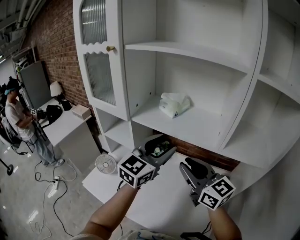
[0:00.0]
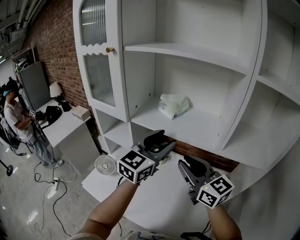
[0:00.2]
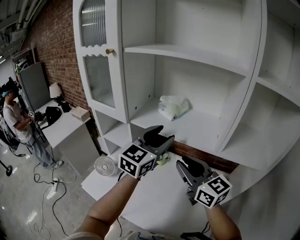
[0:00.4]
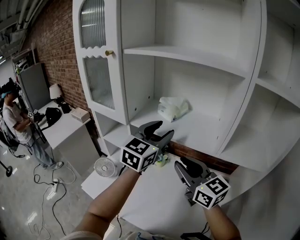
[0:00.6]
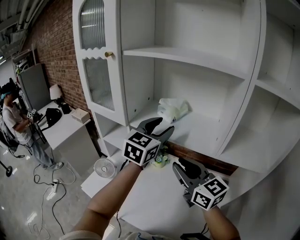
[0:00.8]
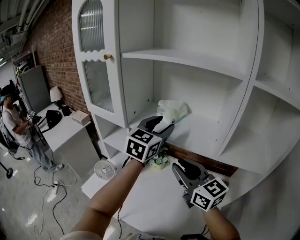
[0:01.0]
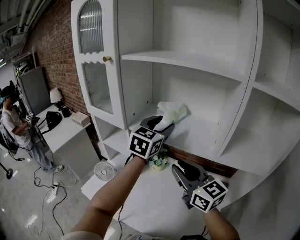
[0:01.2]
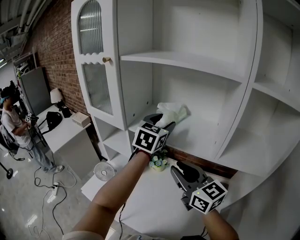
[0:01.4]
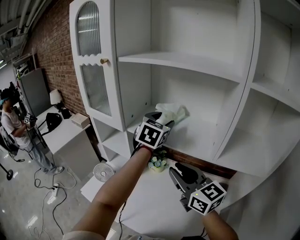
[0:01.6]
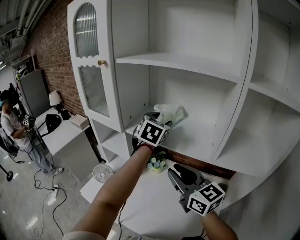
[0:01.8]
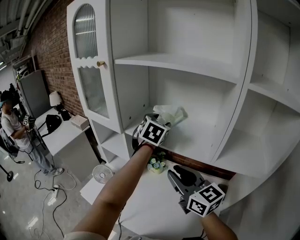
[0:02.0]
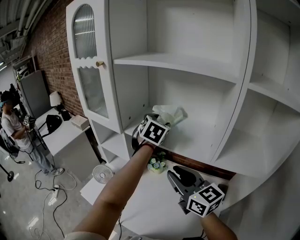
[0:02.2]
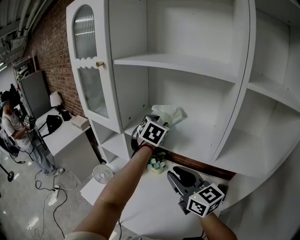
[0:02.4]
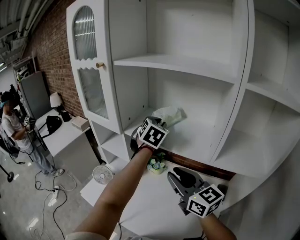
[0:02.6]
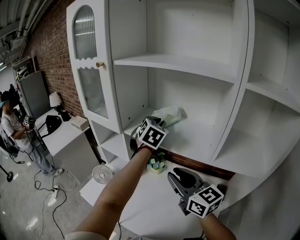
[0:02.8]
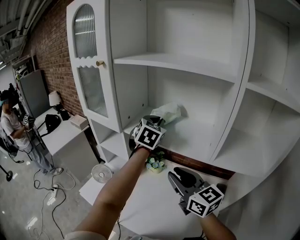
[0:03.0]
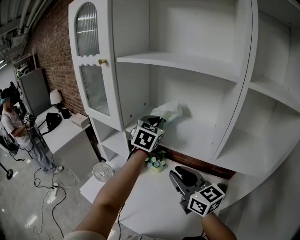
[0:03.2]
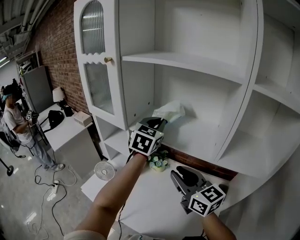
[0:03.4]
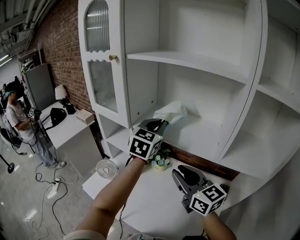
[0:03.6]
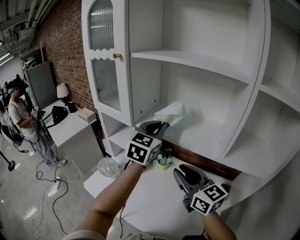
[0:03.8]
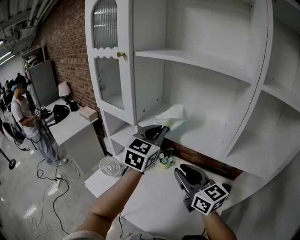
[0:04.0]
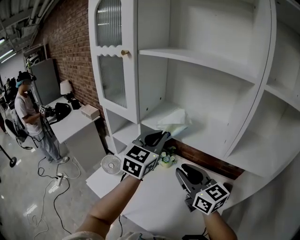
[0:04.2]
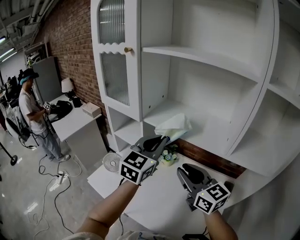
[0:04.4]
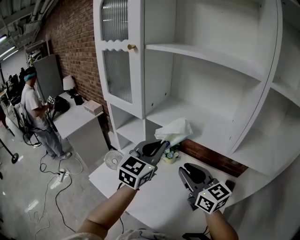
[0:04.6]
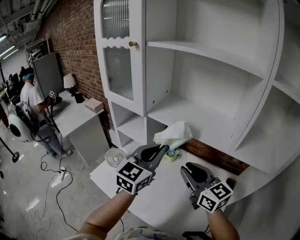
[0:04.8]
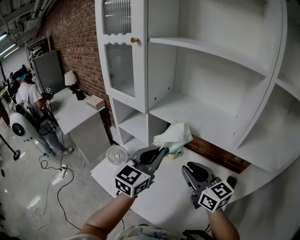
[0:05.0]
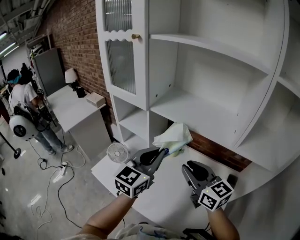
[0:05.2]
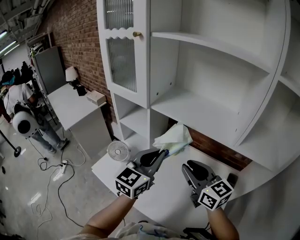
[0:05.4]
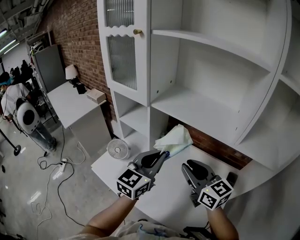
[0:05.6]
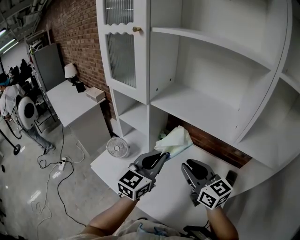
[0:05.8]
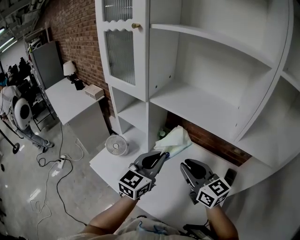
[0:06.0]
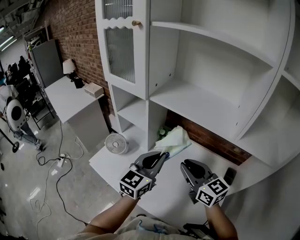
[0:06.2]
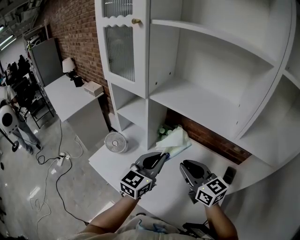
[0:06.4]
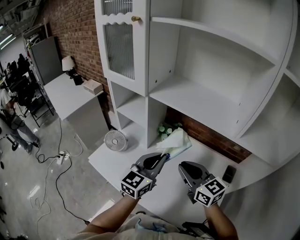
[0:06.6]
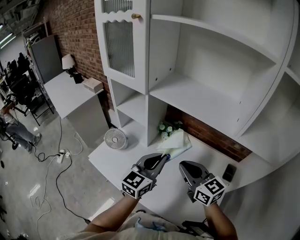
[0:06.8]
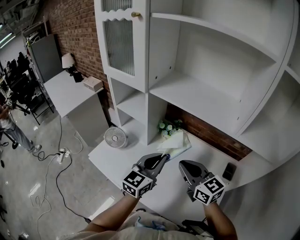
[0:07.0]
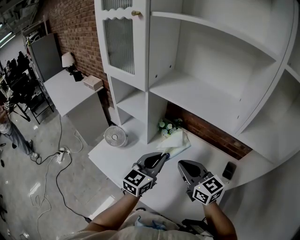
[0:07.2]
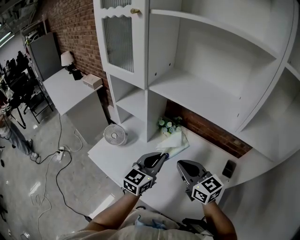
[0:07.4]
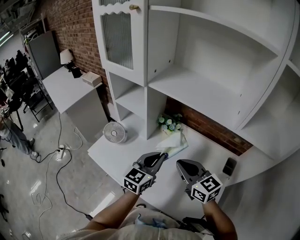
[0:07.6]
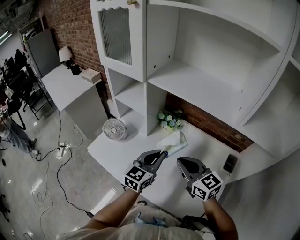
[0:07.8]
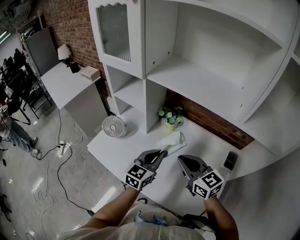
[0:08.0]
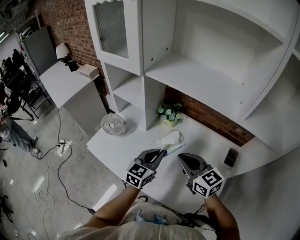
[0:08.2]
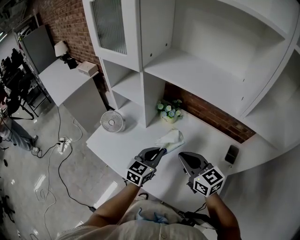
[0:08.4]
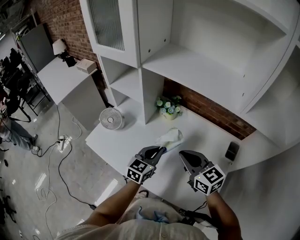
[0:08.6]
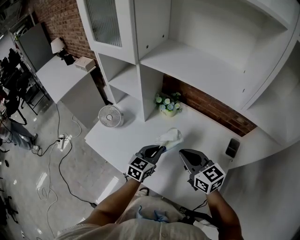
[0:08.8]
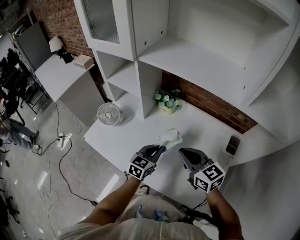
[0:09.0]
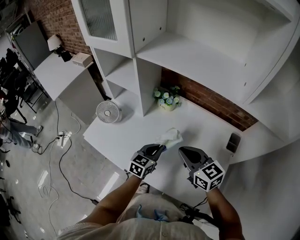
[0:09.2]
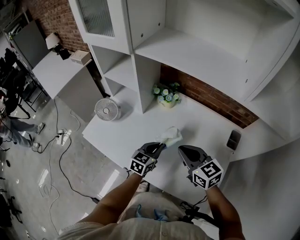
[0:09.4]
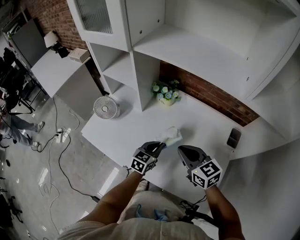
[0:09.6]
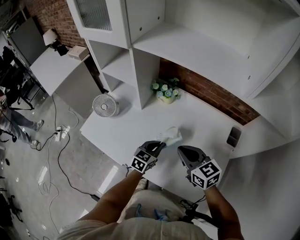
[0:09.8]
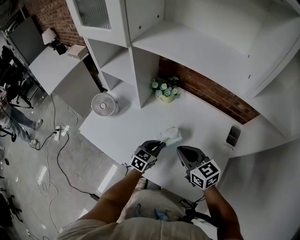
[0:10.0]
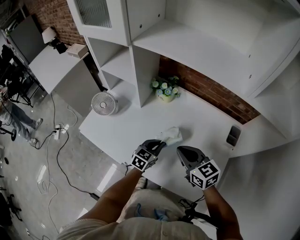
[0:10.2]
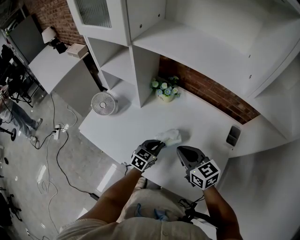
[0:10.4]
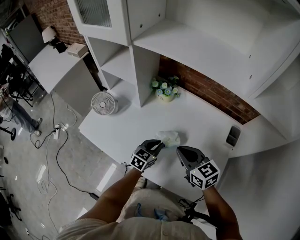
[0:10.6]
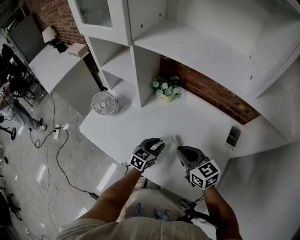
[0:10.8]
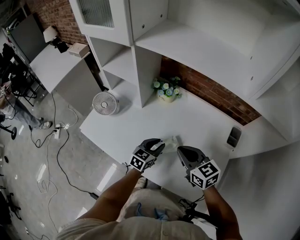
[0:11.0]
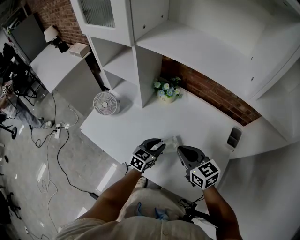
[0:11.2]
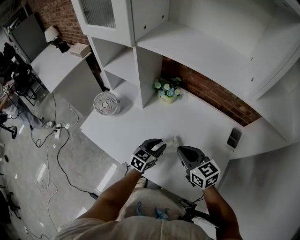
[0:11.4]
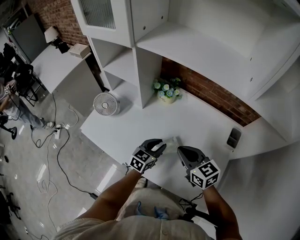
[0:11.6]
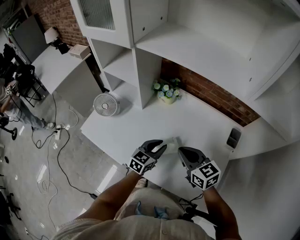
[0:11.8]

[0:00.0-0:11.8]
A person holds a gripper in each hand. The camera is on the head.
0:00.0 to 0:01.4: The left gripper shifts about 15 cm forward, and rotates about 20 degrees.
0:01.4 to 0:03.0: The left gripper closes its fingers.
0:03.0 to 0:04.4: The left gripper moves backward and to the left, about 15 cm, and rotates roughly 20 degrees.
0:04.4 to 0:06.0: The left gripper is displaced downward and backward by about 15 cm, while the right gripper moves downward, roughly 5 cm.
0:06.0 to 0:07.4: The two grippers go about 5 cm downward.
0:07.4 to 0:08.8: The right gripper moves downward, about 5 cm. The left gripper shifts approximately 15 cm downward.
0:08.8 to 0:10.4: The right gripper is displaced downward by roughly 5 cm. The left gripper heads downward, covering approximately 10 cm.
0:10.4 to 0:11.8: The left gripper opens up.

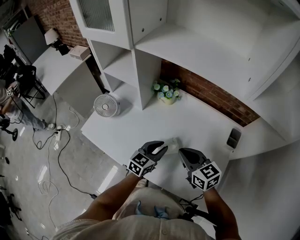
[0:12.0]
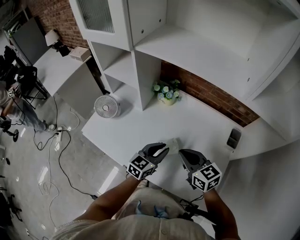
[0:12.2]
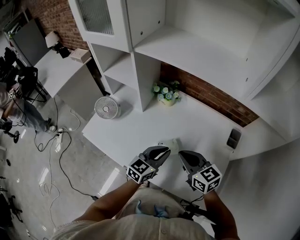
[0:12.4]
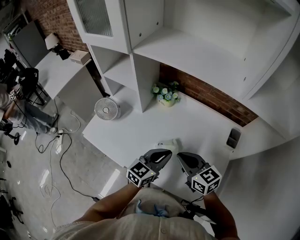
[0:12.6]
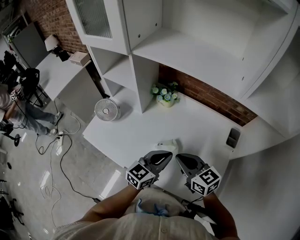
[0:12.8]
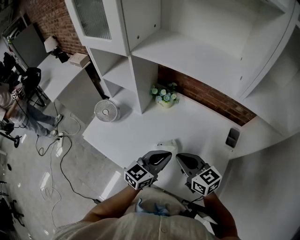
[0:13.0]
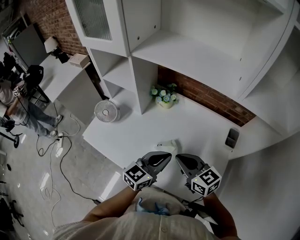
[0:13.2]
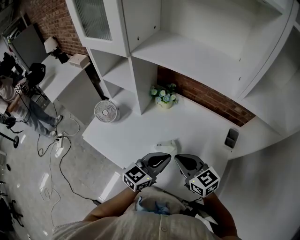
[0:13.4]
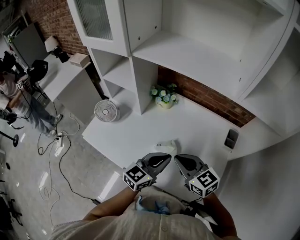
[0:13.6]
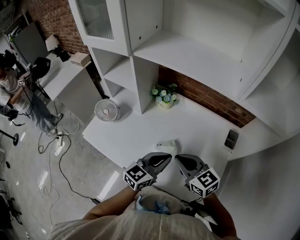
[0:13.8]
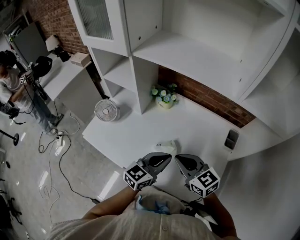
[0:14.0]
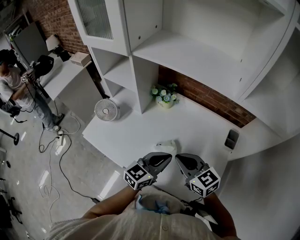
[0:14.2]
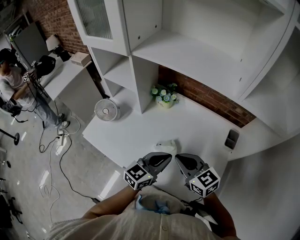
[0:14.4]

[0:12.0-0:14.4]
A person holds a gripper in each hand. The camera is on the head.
0:12.0 to 0:13.2: The left gripper shifts approximately 10 cm upward and backward, and closes up.
0:13.2 to 0:14.4: The grippers move only a little.

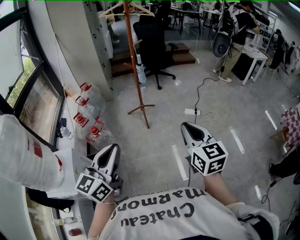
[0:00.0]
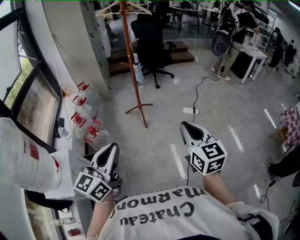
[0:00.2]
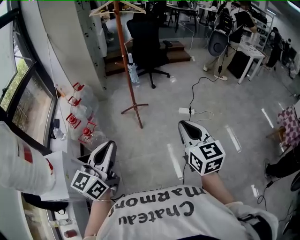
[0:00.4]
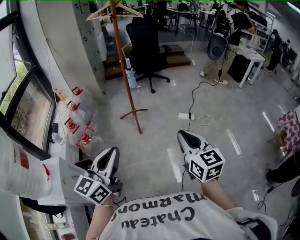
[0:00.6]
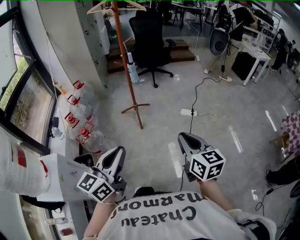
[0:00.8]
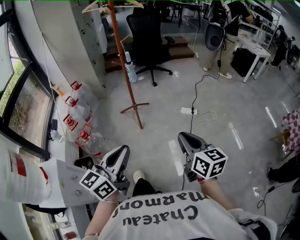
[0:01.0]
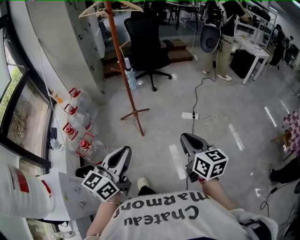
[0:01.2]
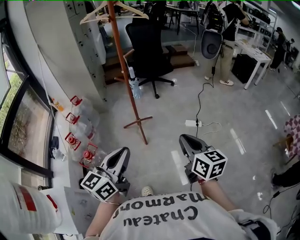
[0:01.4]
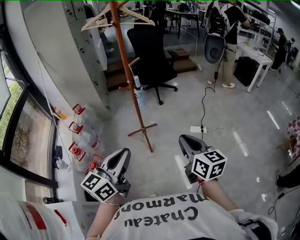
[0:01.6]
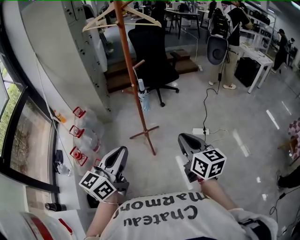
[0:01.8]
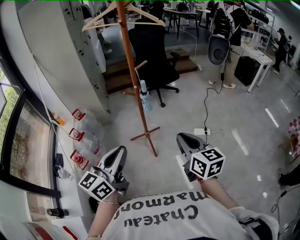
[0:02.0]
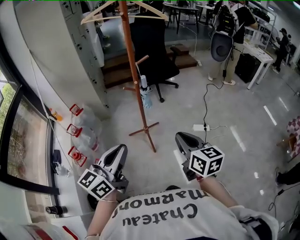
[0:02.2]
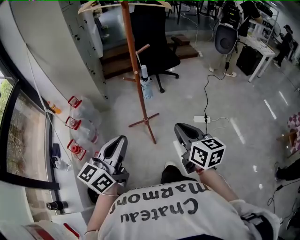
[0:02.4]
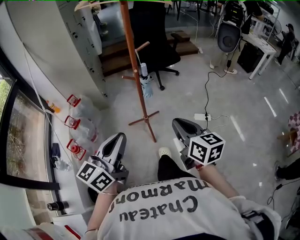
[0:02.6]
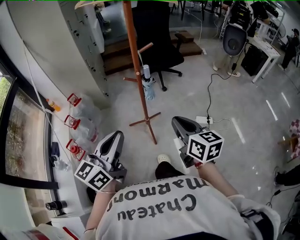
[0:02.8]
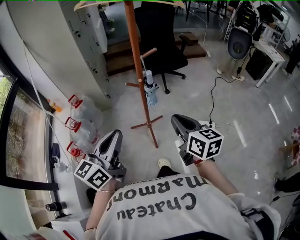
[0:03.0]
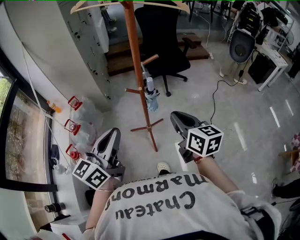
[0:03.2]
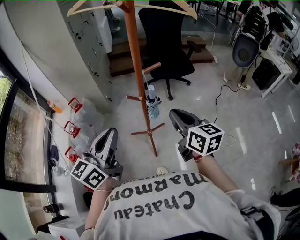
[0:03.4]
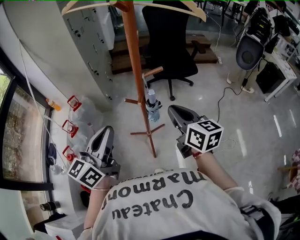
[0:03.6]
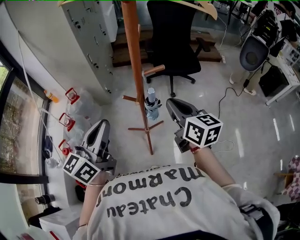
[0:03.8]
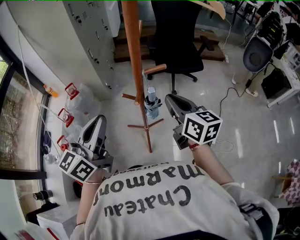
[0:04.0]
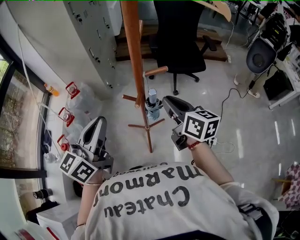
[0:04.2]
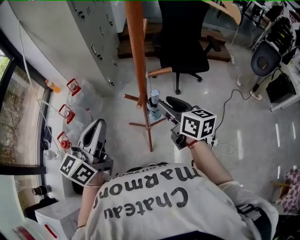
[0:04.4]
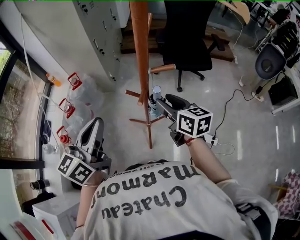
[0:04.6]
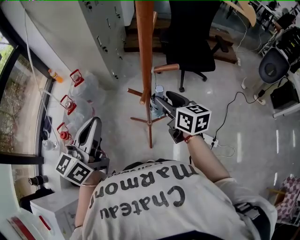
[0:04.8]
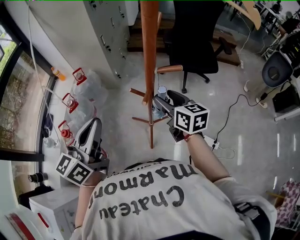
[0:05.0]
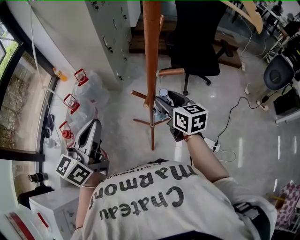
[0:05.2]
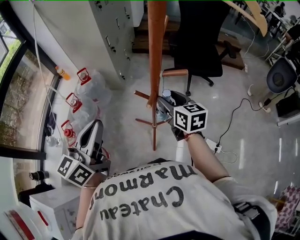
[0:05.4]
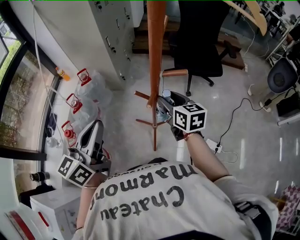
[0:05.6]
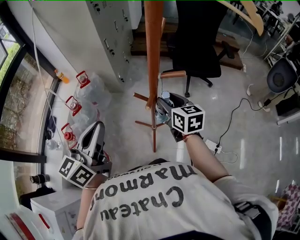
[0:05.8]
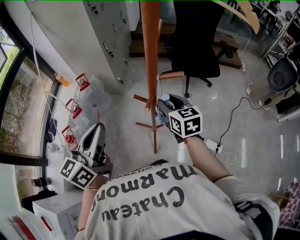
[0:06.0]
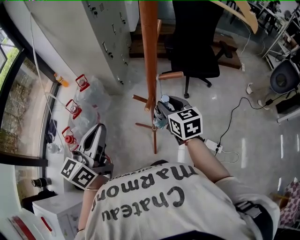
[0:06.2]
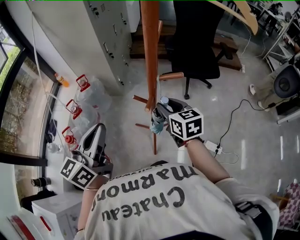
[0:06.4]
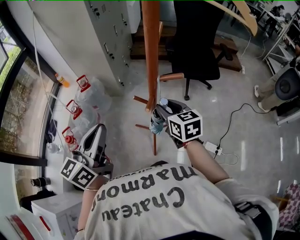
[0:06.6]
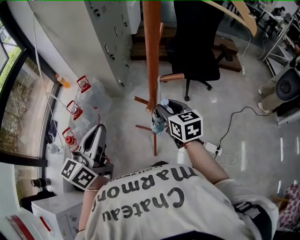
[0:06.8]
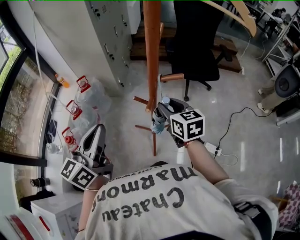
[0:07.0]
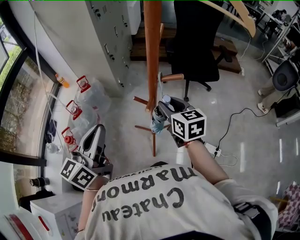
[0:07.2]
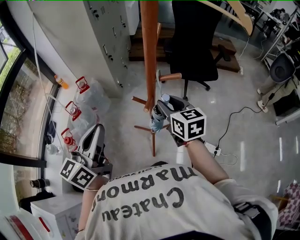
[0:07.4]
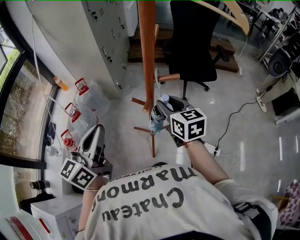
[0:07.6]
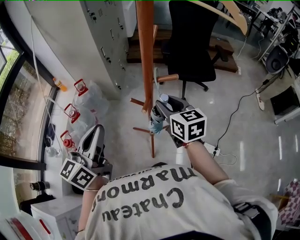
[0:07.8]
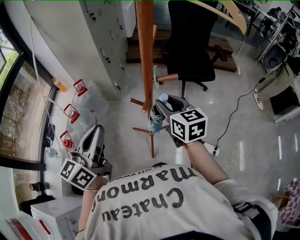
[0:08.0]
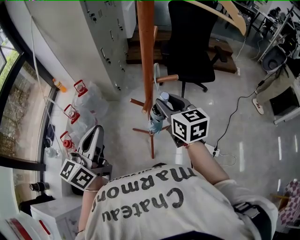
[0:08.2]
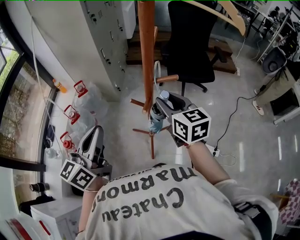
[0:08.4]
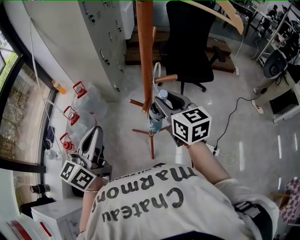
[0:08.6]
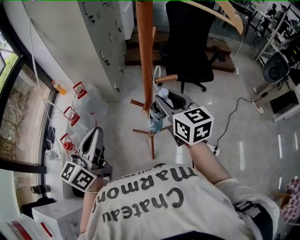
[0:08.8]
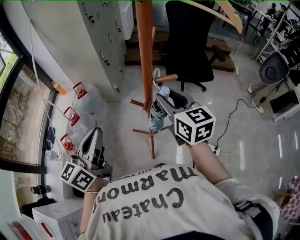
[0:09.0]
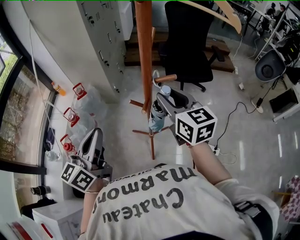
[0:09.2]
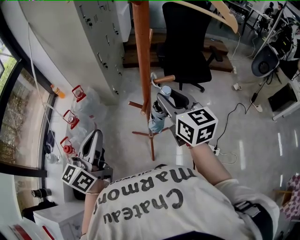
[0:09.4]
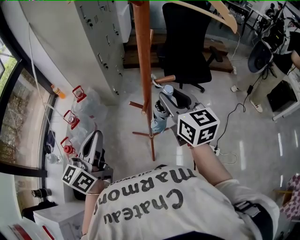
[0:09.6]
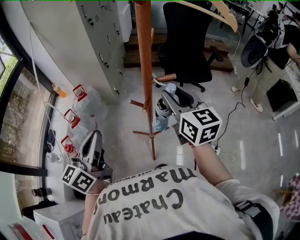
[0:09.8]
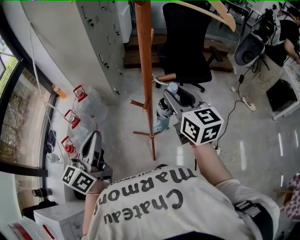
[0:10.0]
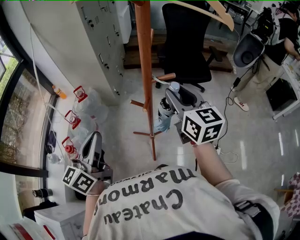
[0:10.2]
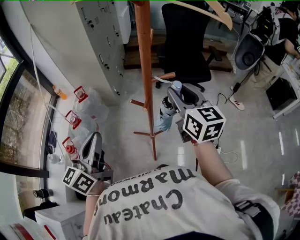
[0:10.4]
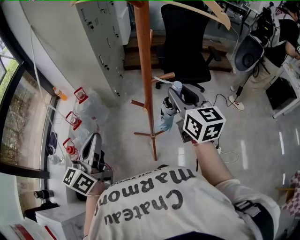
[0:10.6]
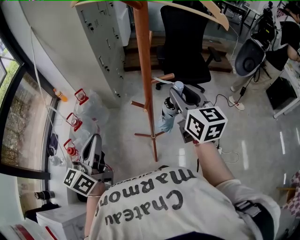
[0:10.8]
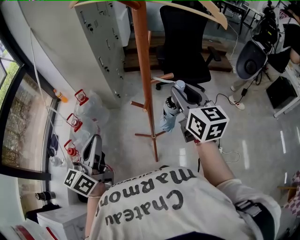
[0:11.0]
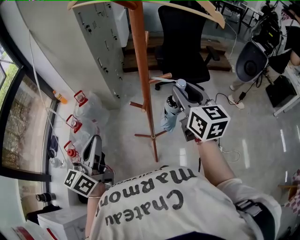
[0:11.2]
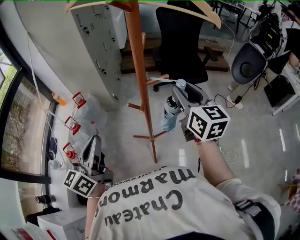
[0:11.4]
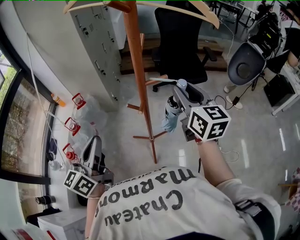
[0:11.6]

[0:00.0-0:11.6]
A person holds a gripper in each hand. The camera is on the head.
0:00.0 to 0:01.4: Both grippers move forward, some 20 cm.
0:01.4 to 0:02.8: The grippers both shift forward and to the left by roughly 25 cm.
0:02.8 to 0:04.4: Both grippers move forward, about 30 cm. The right gripper turns by roughly 20 degrees, and opens up.
0:04.4 to 0:05.8: The right gripper travels forward and downward by approximately 5 cm.
0:05.8 to 0:07.2: The grippers move only a little.
0:07.2 to 0:08.8: The right gripper is displaced upward by approximately 10 cm.
0:08.8 to 0:10.2: The right gripper ends up about 5 cm from where it was.
0:10.2 to 0:11.6: The right gripper goes approximately 5 cm to the right.
